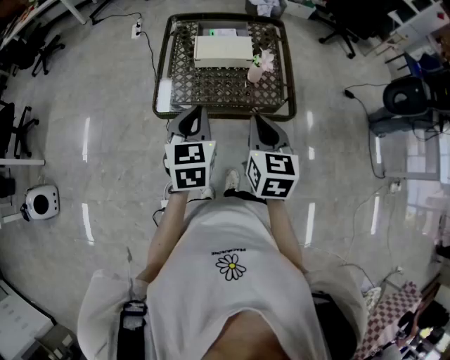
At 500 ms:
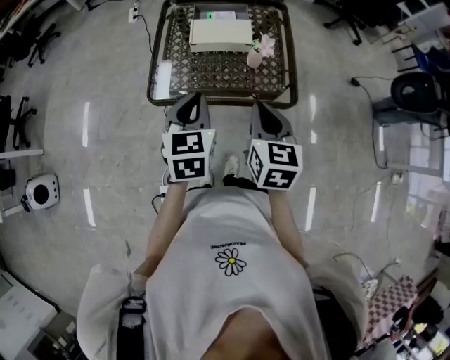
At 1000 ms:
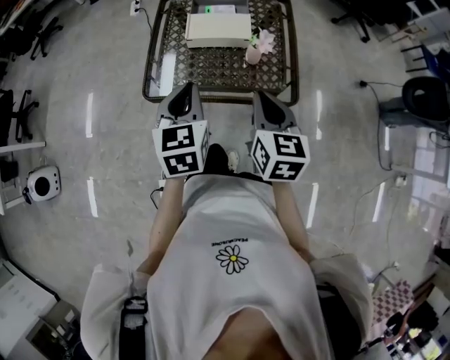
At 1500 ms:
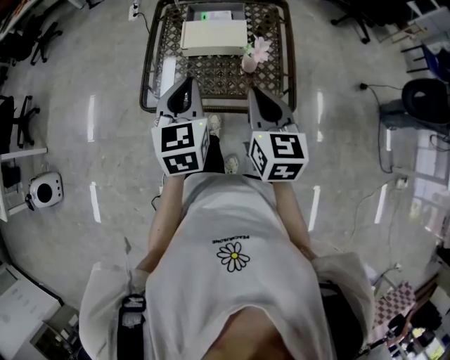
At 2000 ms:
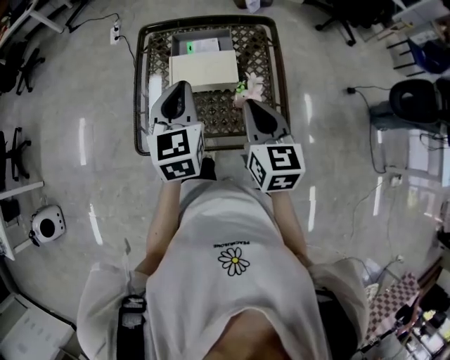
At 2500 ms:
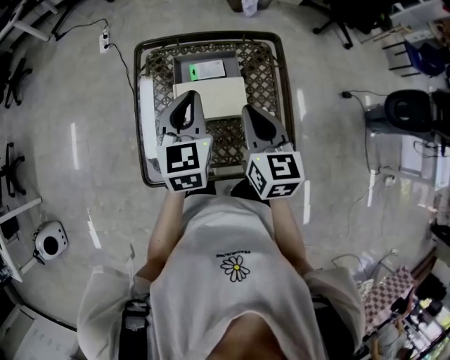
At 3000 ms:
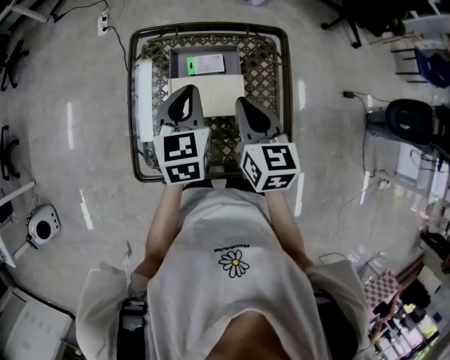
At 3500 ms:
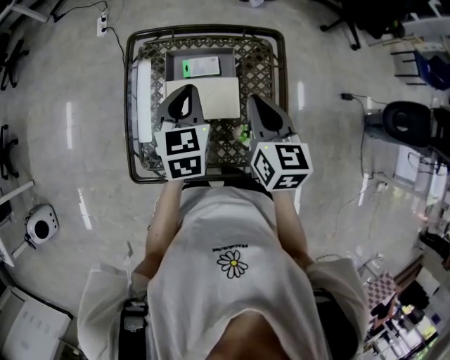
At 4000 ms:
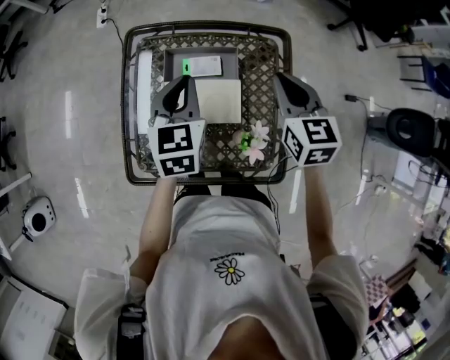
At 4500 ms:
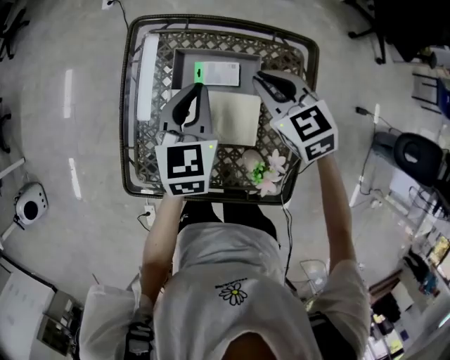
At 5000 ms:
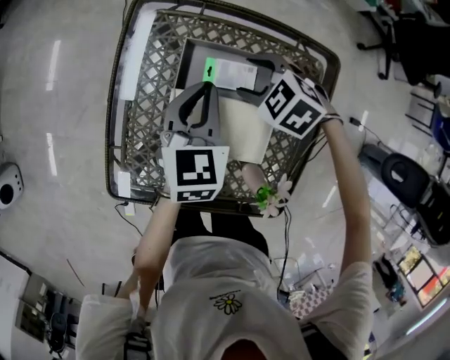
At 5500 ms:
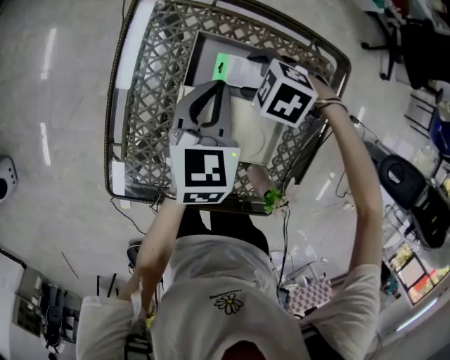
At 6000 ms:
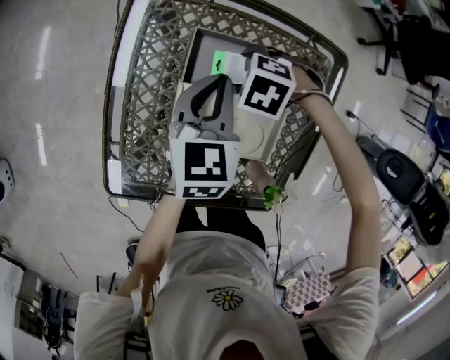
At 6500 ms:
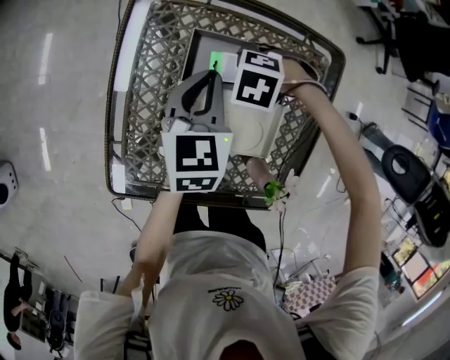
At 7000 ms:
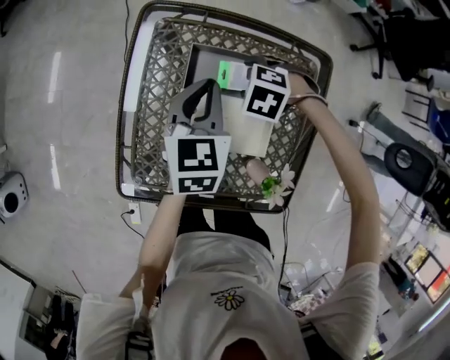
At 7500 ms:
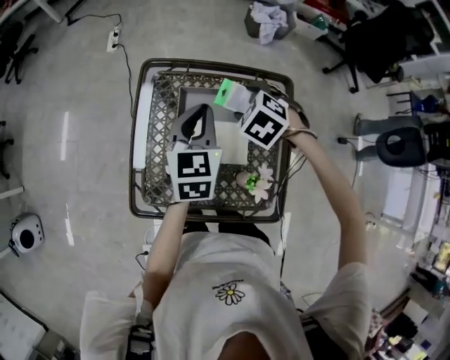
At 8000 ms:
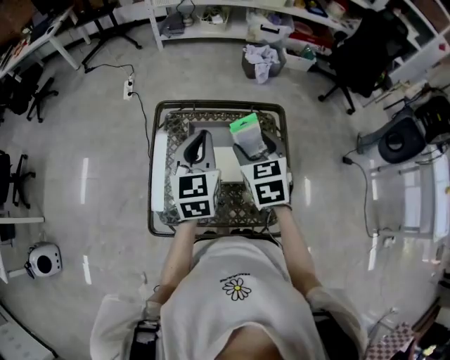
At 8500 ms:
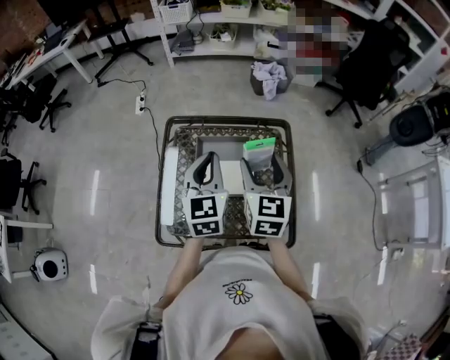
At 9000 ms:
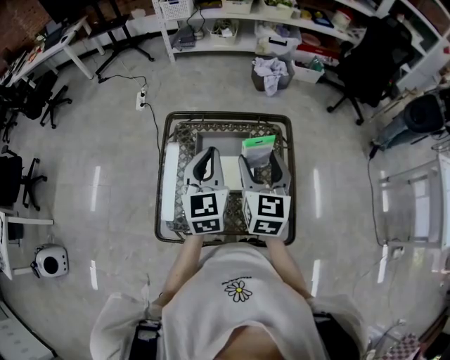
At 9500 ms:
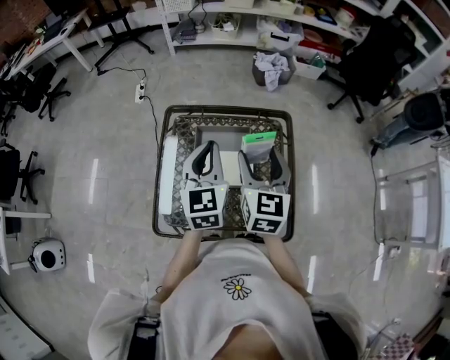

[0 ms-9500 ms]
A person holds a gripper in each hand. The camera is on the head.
0 ms to 2000 ms: Both grippers move forward, some 20 cm.
2000 ms to 4000 ms: Both grippers move forward, about 20 cm.
4000 ms to 5500 ms: The right gripper goes approximately 25 cm downward, tilts its fingers about 50 degrees downward, and opens up. The left gripper heads downward, covering approximately 15 cm.
5500 ms to 7500 ms: Both grippers move upward, about 15 cm. The right gripper swivels approximately 30 degrees.
7500 ms to 9500 ms: The left gripper moves upward and backward, roughly 10 cm, while the right gripper is displaced upward and backward by roughly 20 cm, and angles its fingers upward, by roughly 50 degrees.

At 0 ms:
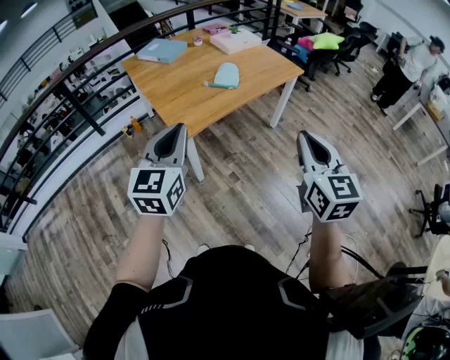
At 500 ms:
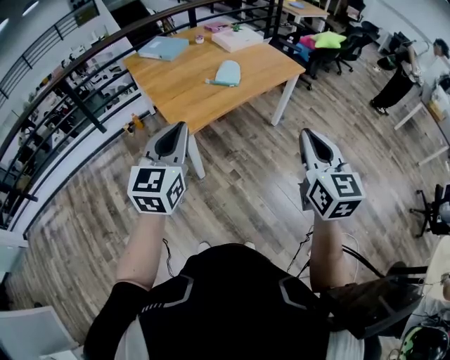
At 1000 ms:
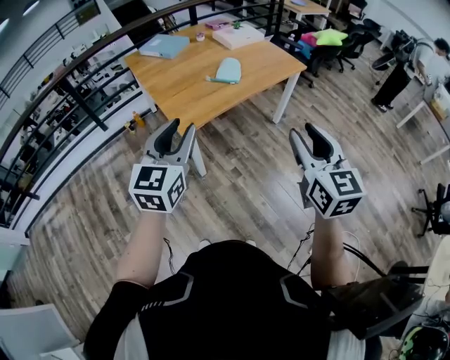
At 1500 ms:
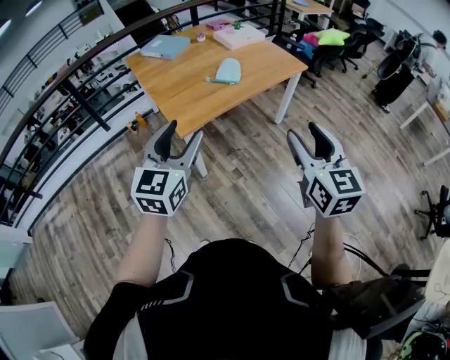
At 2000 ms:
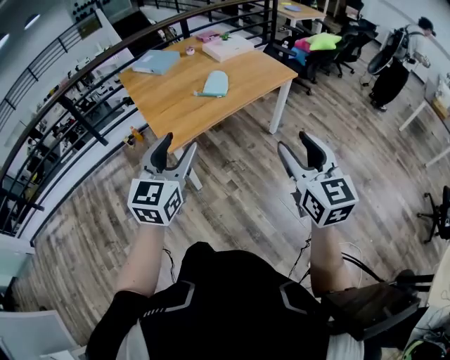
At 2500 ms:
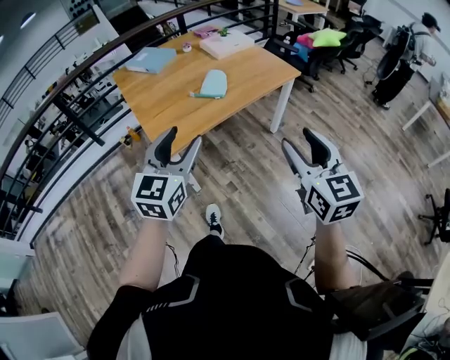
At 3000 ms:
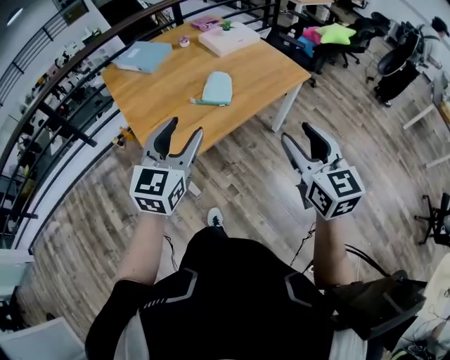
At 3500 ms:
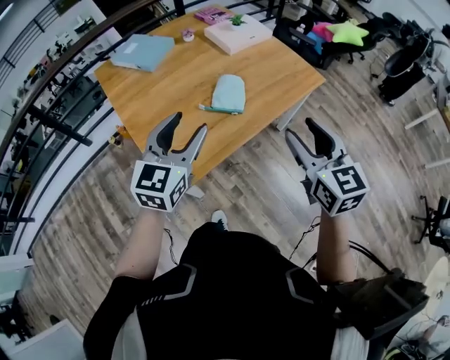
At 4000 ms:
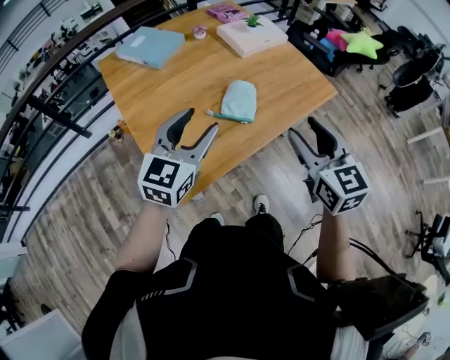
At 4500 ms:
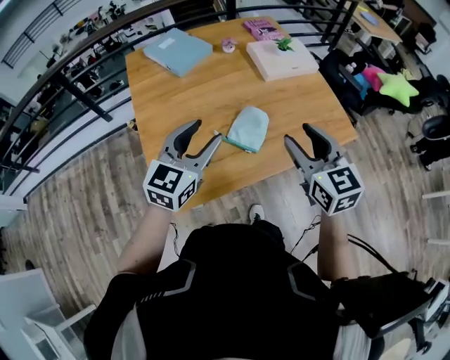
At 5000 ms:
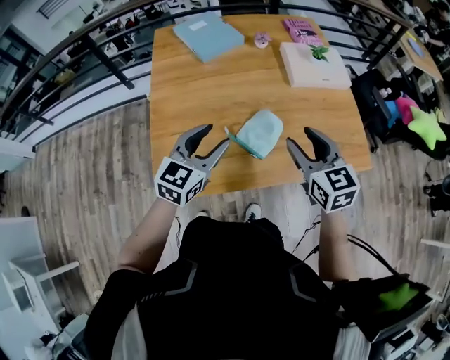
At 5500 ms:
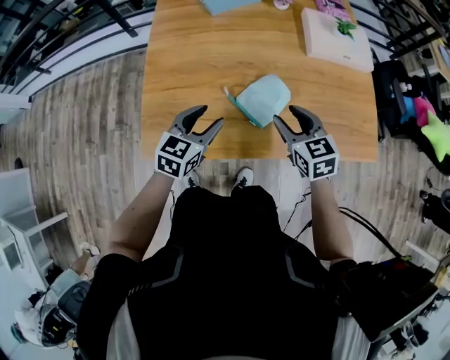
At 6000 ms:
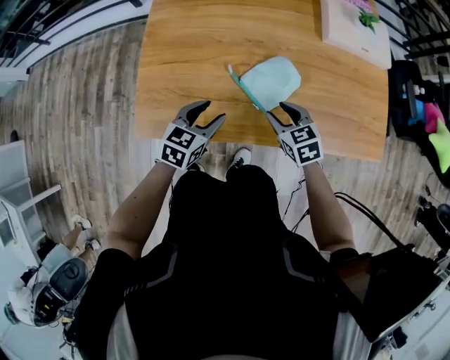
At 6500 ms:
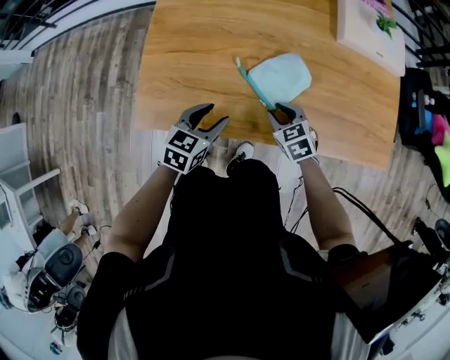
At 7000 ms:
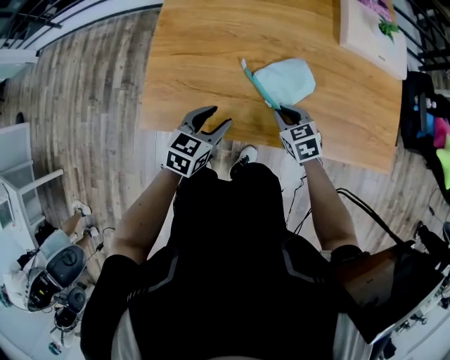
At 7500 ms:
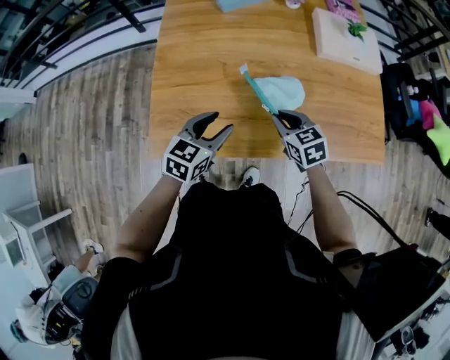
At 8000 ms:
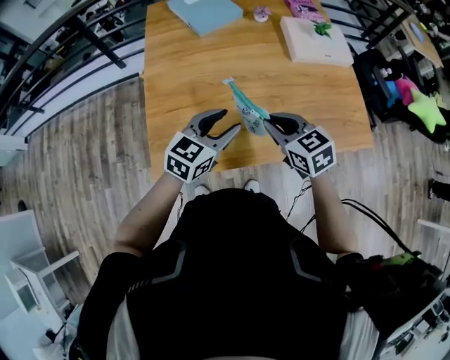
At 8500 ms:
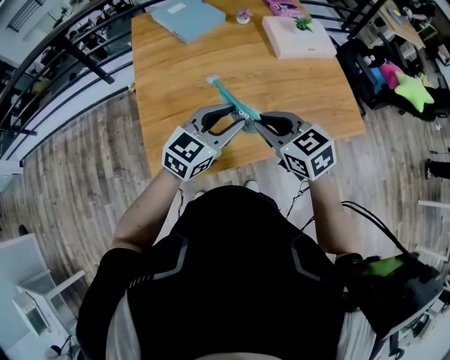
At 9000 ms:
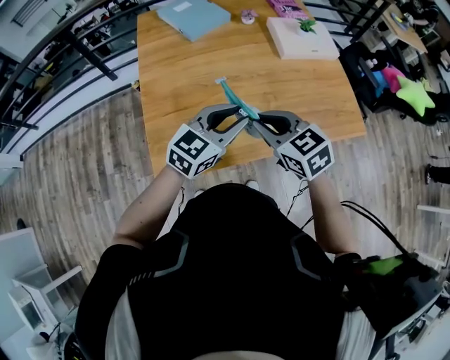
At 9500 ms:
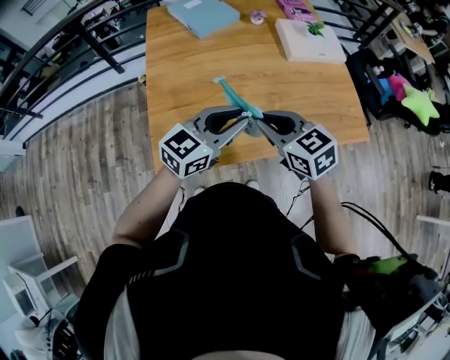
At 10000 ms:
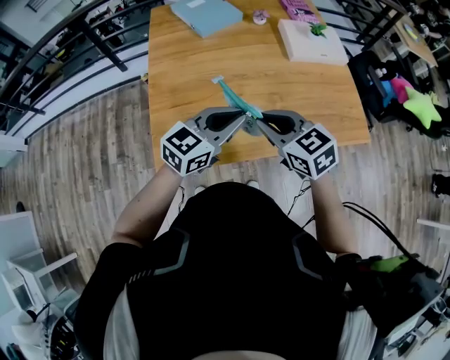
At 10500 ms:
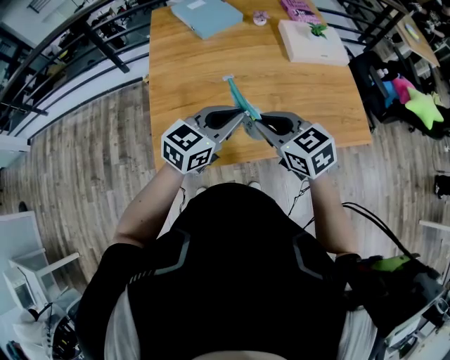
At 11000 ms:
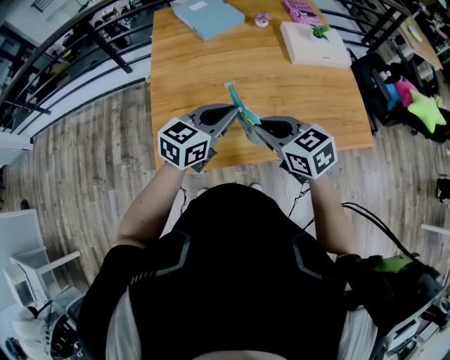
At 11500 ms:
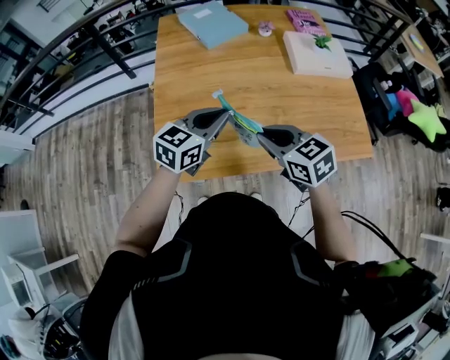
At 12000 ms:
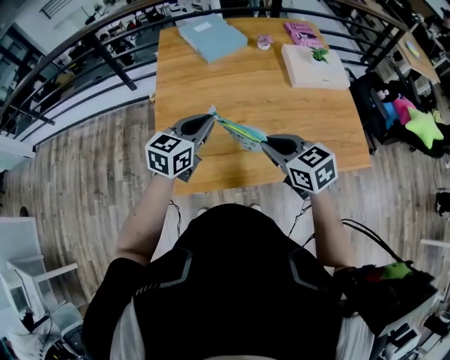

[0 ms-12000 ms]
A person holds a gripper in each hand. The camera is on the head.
0 ms to 2000 ms: Both grippers move to the right, roughly 10 cm. The left gripper opens up. Meanwhile the right gripper opens up.
2000 ms to 4000 ms: Both grippers move forward, approximately 40 cm.
4000 ms to 6000 ms: The grippers both shift downward by about 30 cm. The right gripper swivels roughly 60 degrees, while the left gripper swivels roughly 40 degrees.
6000 ms to 8000 ms: Both grippers move upward, approximately 15 cm. The left gripper swivels roughly 20 degrees. Meanwhile the right gripper closes its fingers.
8000 ms to 10000 ms: The grippers both shift upward by roughly 5 cm. The left gripper closes up.
10000 ms to 12000 ms: The left gripper travels to the left and forward by approximately 10 cm, and turns by about 20 degrees.

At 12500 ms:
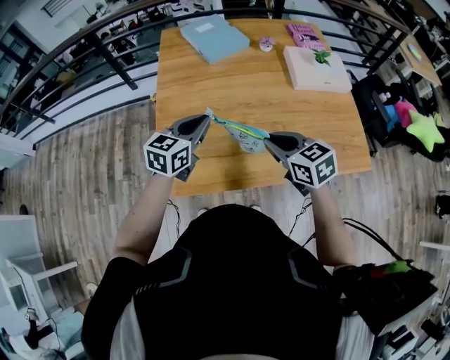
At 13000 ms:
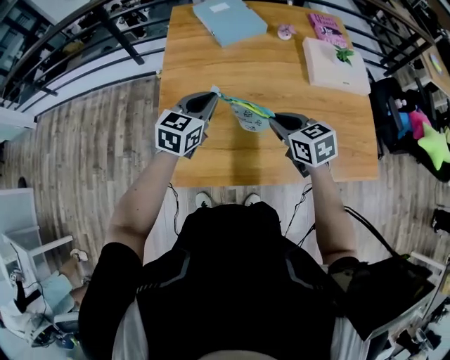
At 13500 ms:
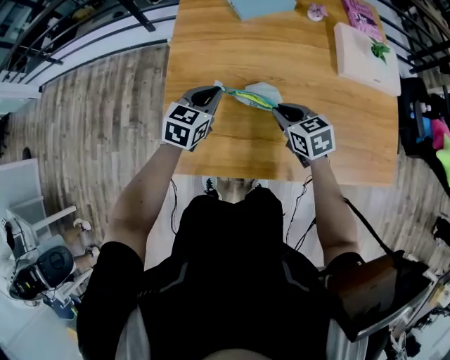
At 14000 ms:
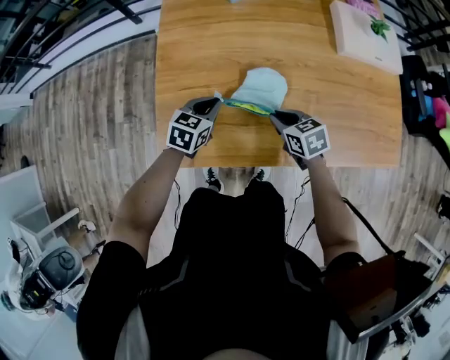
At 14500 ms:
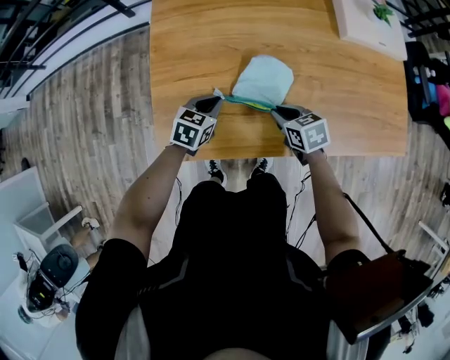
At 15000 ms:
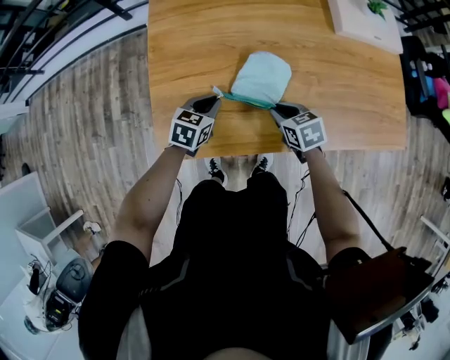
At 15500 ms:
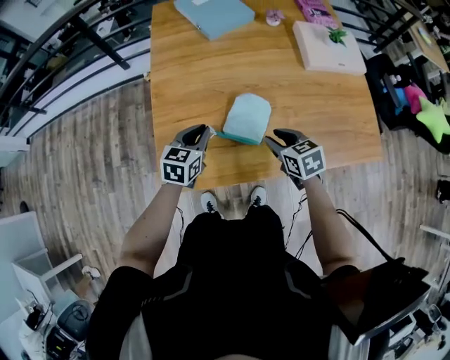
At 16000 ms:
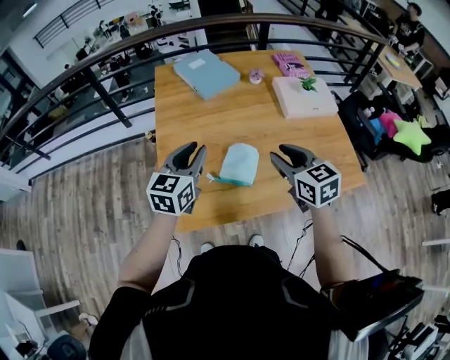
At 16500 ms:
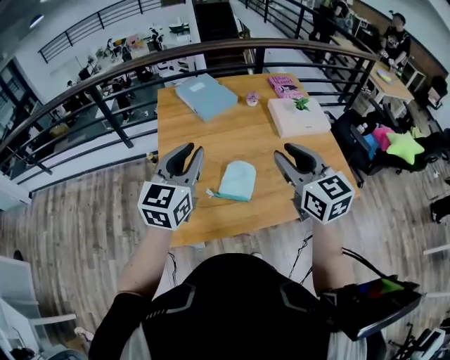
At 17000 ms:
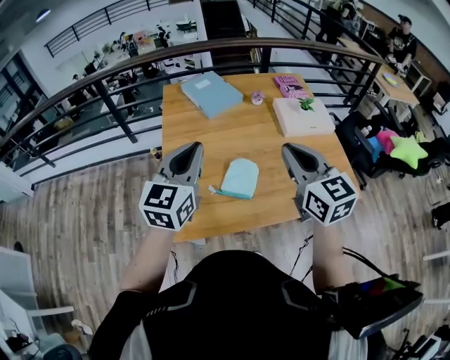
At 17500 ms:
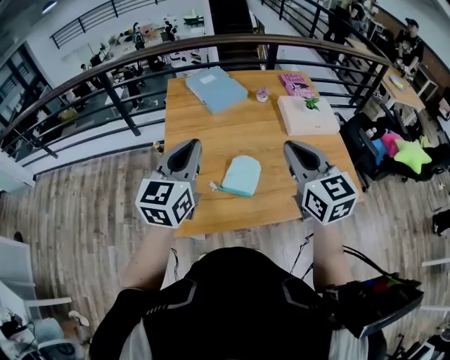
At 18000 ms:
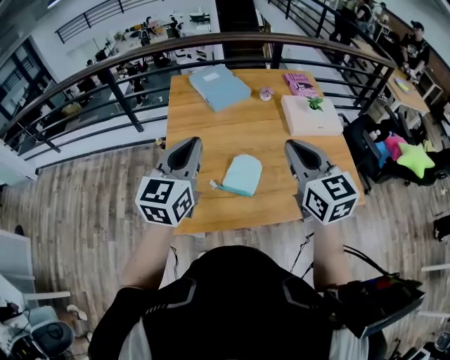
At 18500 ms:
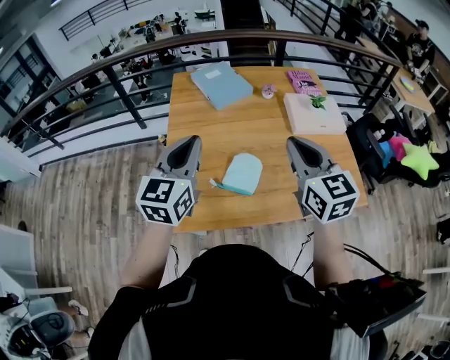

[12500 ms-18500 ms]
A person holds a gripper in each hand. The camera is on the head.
12500 ms to 14500 ms: Both grippers move downward, some 25 cm. The left gripper turns by about 30 degrees; the right gripper swivels about 20 degrees.
14500 ms to 16500 ms: The grippers both shift upward by approximately 40 cm. The right gripper tips its fingers upward by some 40 degrees, and opens its fingers. Meanwhile the left gripper tilts its fingers some 40 degrees upward.
16500 ms to 18500 ms: The right gripper closes up.
